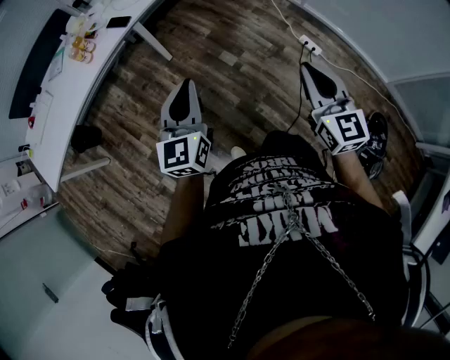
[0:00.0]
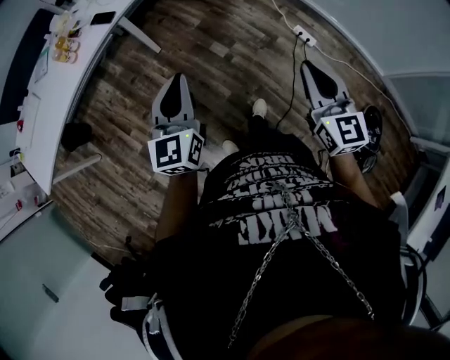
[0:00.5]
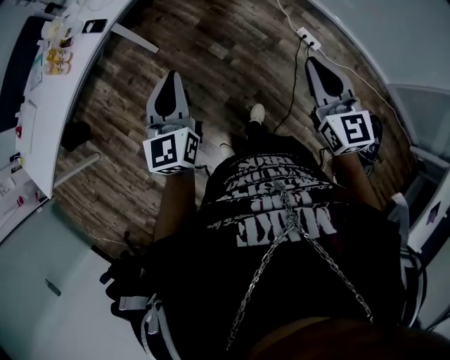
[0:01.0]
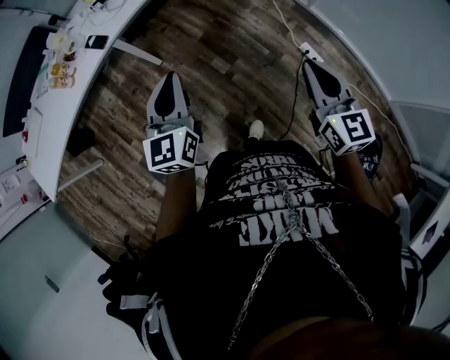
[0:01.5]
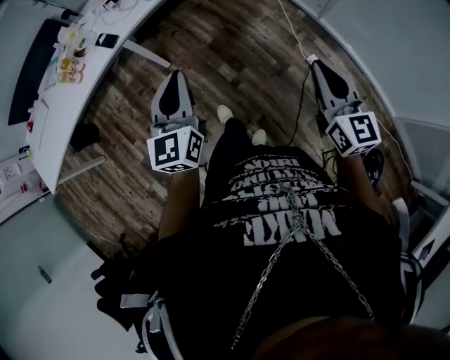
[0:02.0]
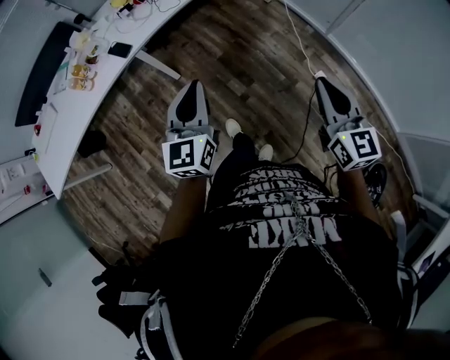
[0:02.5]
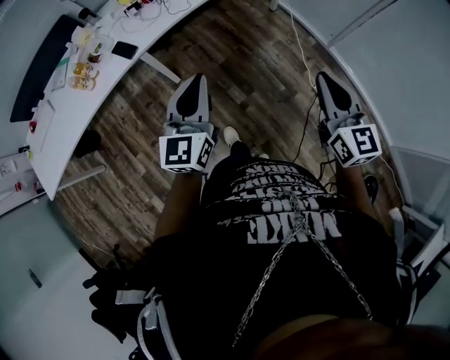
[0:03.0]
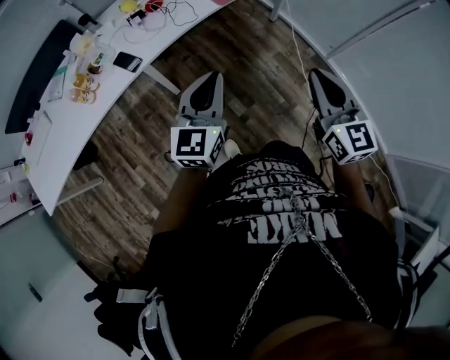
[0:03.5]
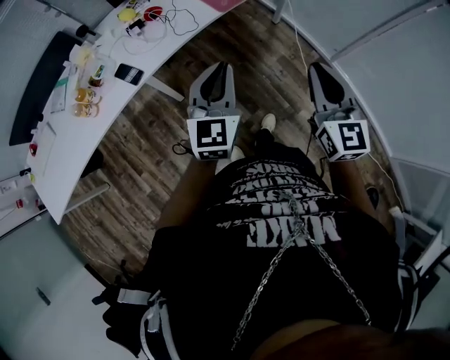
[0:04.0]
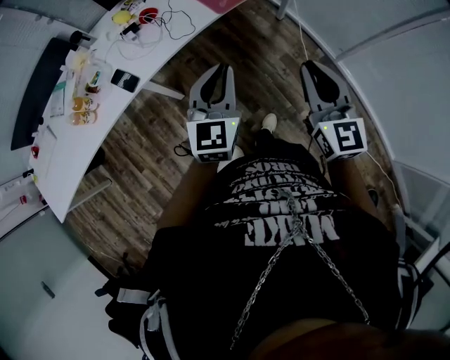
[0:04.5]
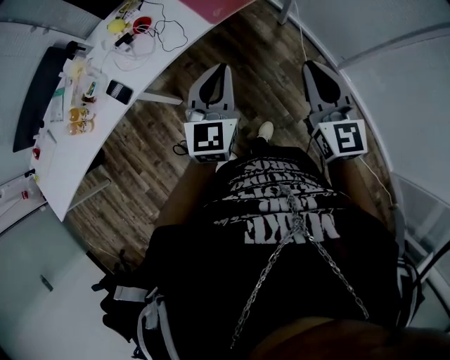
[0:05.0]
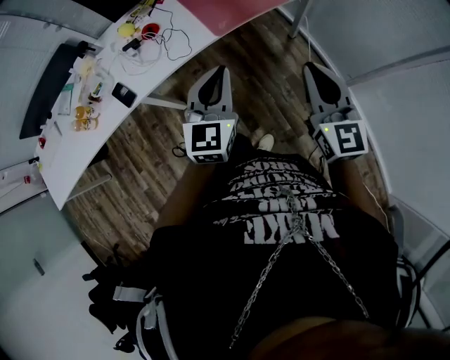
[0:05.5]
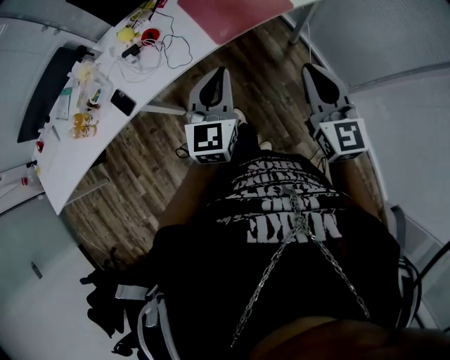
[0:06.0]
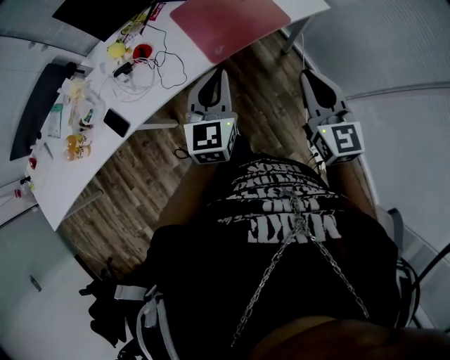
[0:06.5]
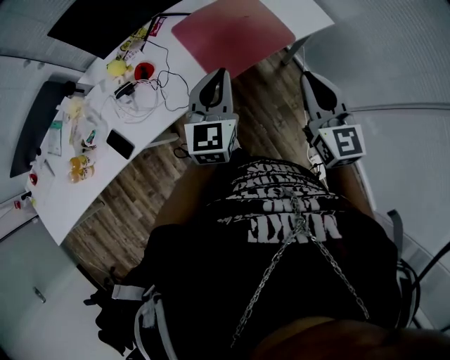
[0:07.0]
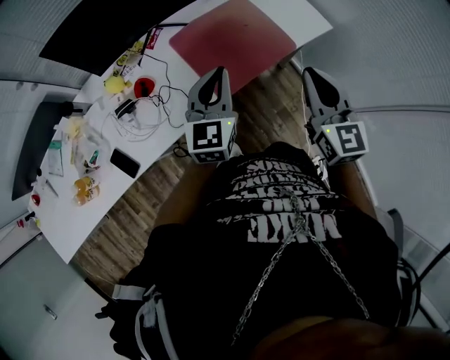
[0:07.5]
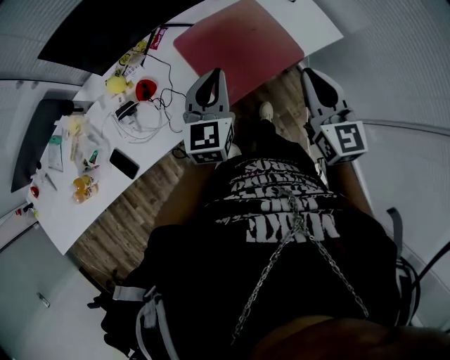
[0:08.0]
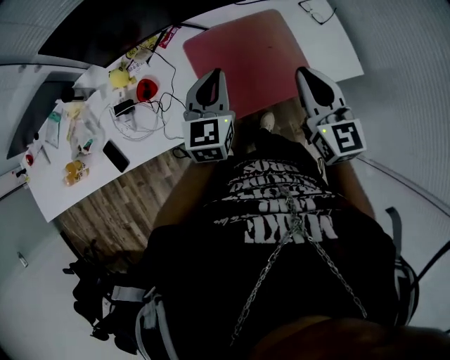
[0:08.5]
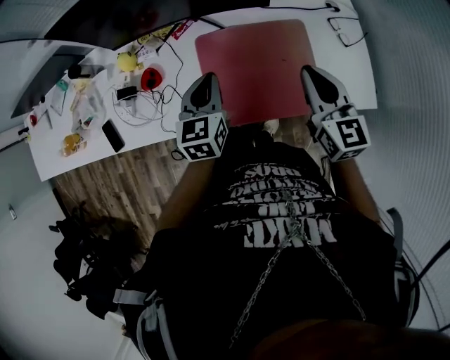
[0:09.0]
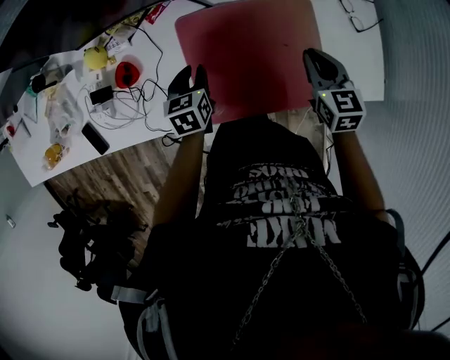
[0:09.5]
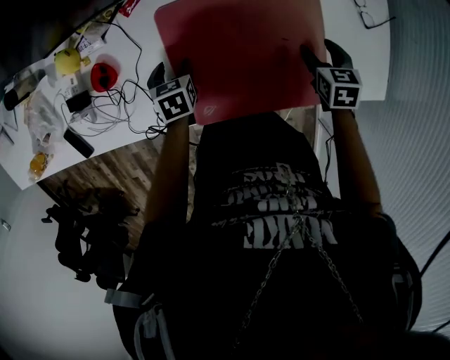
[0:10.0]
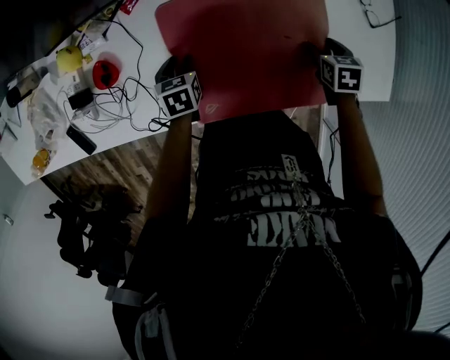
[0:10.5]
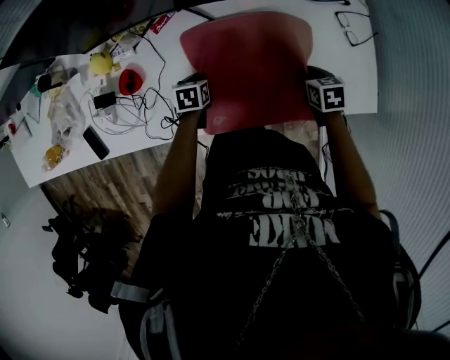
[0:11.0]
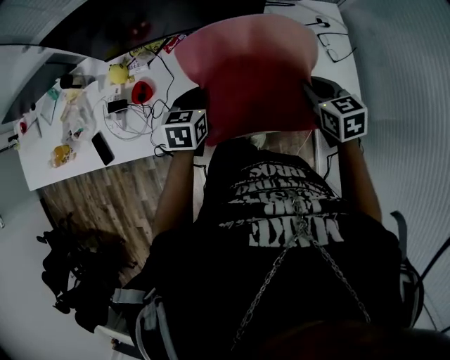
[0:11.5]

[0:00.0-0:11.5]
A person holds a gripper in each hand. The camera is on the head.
0:00.0 to 0:02.0: Both grippers travel together forward and to the right, about 30 cm.
0:02.0 to 0:04.0: The right gripper goes approximately 30 cm forward and to the left. The left gripper travels forward by about 25 cm.
0:04.0 to 0:06.0: The two grippers go approximately 25 cm forward and to the right.
0:06.0 to 0:07.5: Both grippers move forward, approximately 25 cm.
0:07.5 to 0:09.5: The right gripper shifts by roughly 50 cm, and turns by approximately 40 degrees. The left gripper is displaced downward by approximately 30 cm, angles its fingers downward, by approximately 40 degrees, and opens.
0:09.5 to 0:11.5: The left gripper travels upward by some 10 cm, and opens and closes again. The right gripper goes downward and returns, about 20 cm each way, and opens, then closes again.

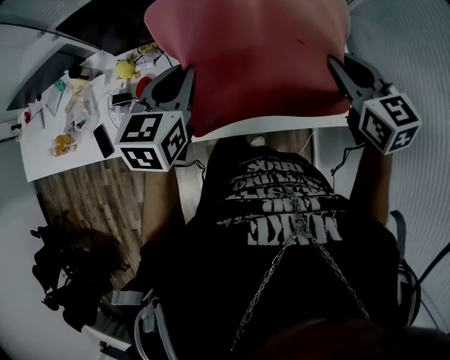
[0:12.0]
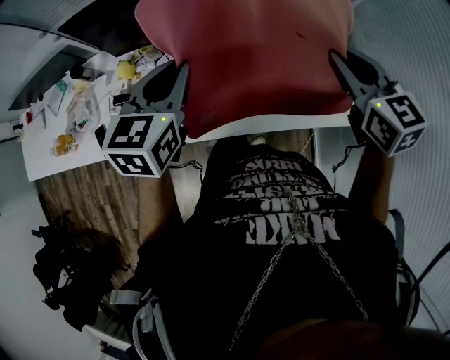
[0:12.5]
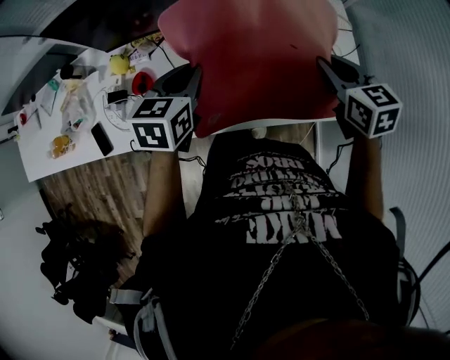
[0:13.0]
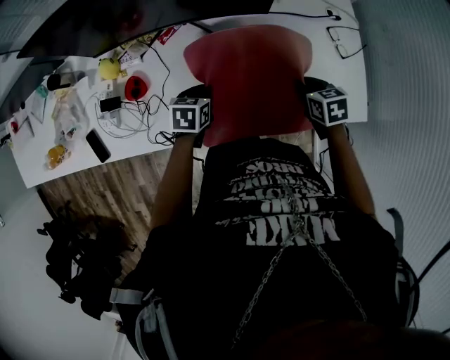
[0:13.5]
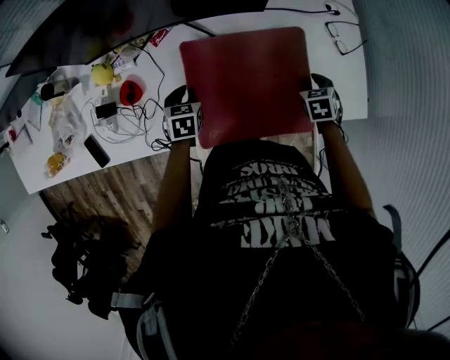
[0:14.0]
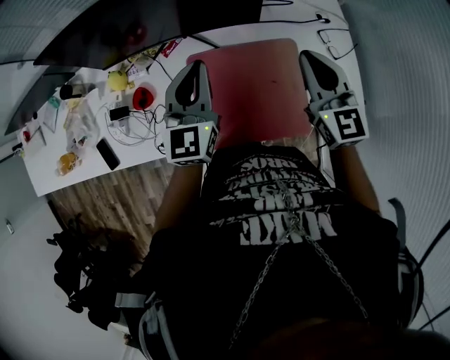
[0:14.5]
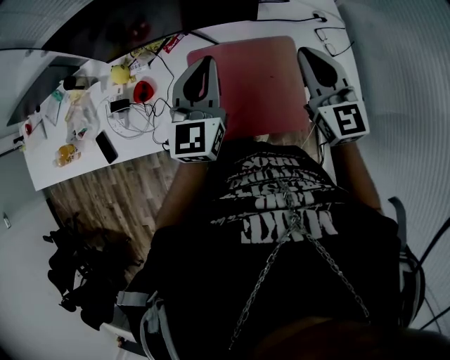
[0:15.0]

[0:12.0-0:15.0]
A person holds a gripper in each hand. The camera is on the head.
0:12.0 to 0:13.5: Both grippers travel together downward, about 30 cm. The left gripper turns by about 30 degrees; the right gripper turns by about 30 degrees.
0:13.5 to 0:15.0: Both grippers move upward, about 25 cm. The left gripper tilts its fingers some 50 degrees upward, while the right gripper tips its fingers upward by about 50 degrees, and opens, then closes again.

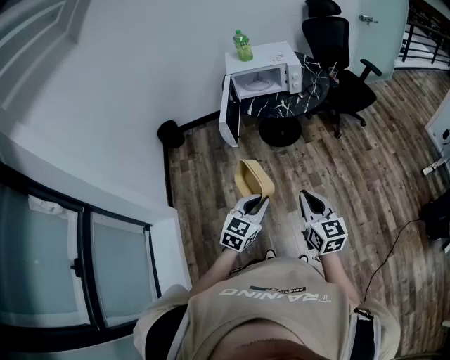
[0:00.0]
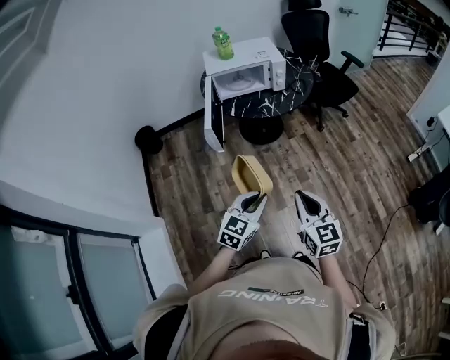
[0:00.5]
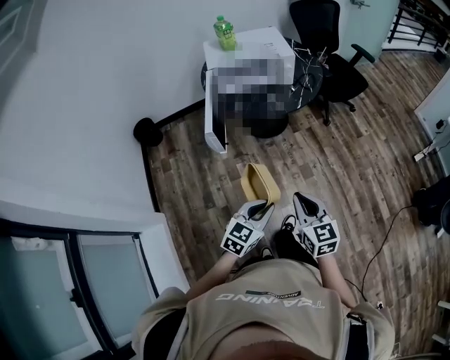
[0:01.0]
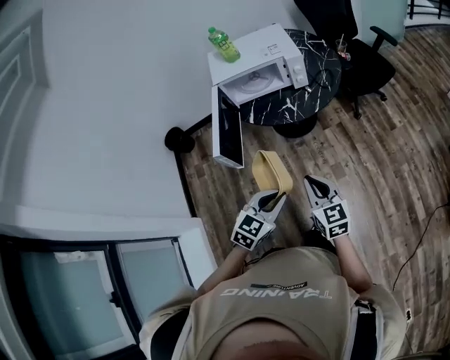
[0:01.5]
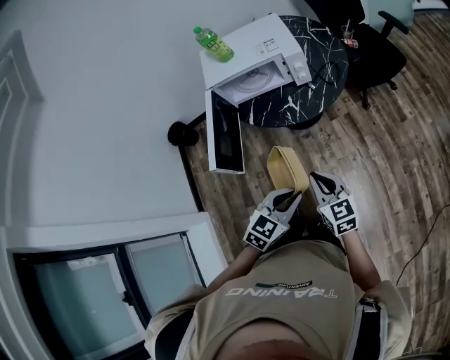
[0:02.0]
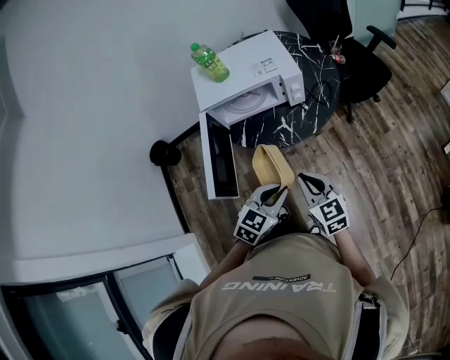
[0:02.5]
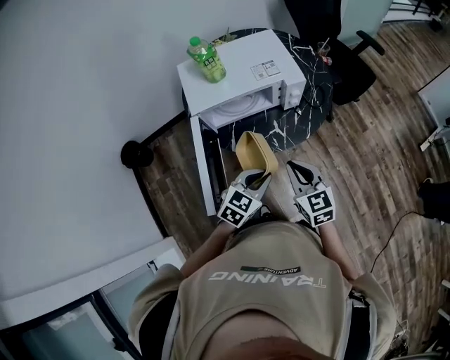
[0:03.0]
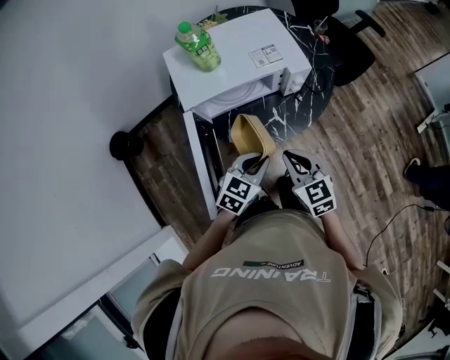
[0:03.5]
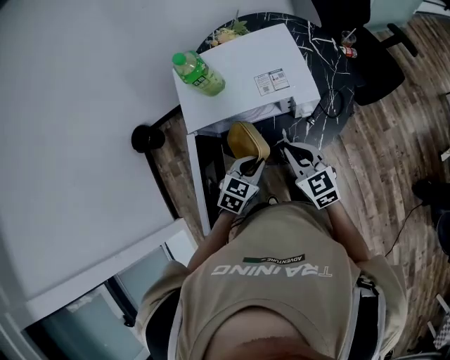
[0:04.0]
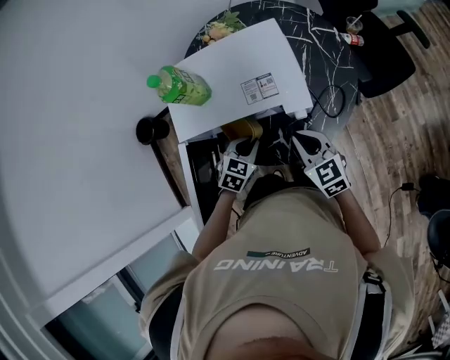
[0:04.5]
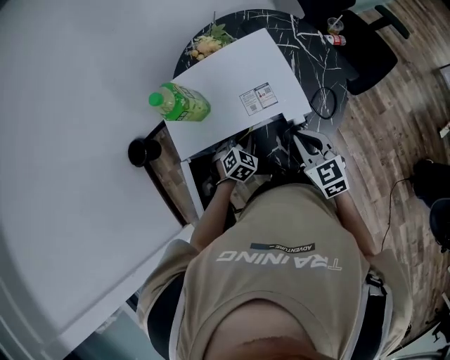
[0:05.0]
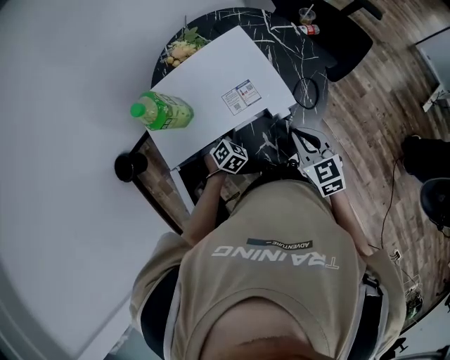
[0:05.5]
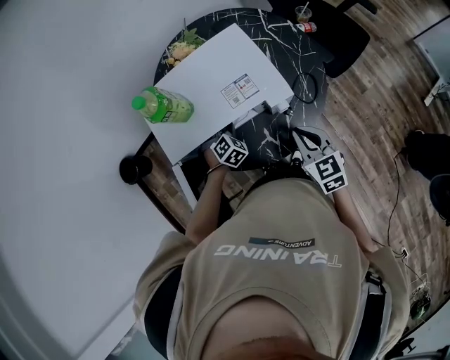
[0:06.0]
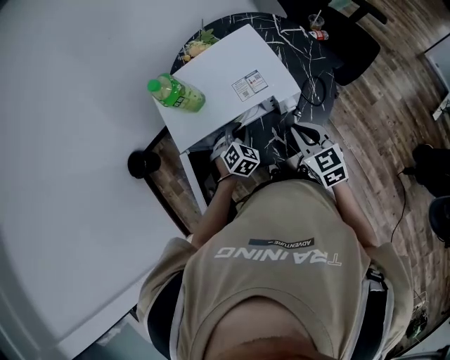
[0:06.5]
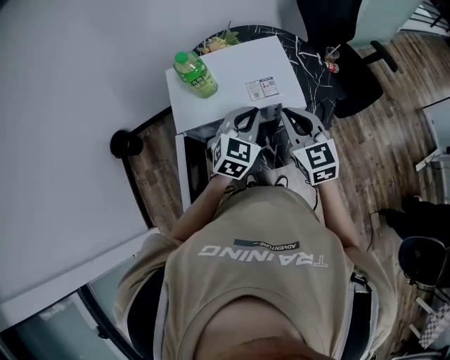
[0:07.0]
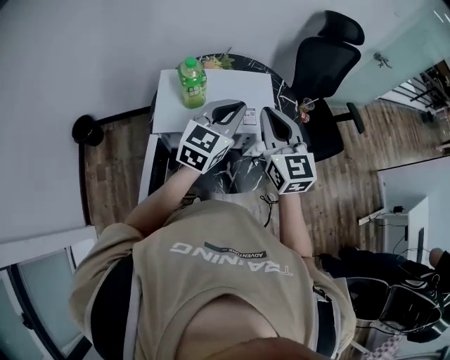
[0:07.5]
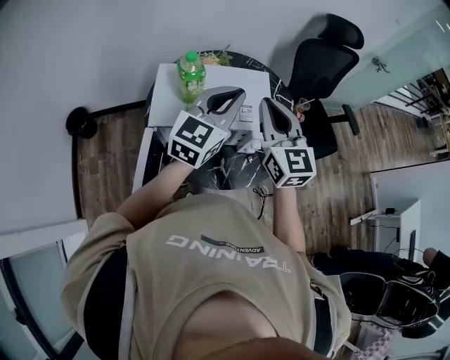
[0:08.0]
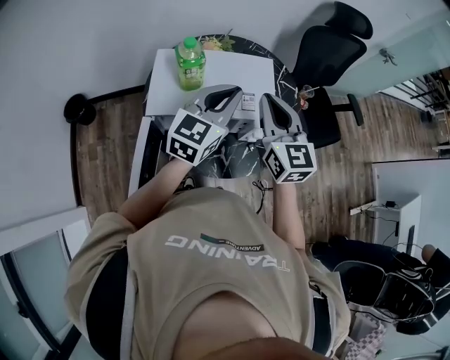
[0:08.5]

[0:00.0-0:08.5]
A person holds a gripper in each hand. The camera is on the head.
0:00.0 to 0:02.0: Both grippers move forward, some 30 cm.
0:02.0 to 0:04.0: The two grippers go approximately 35 cm forward and to the left.
0:04.0 to 0:06.5: The left gripper travels forward and downward by some 15 cm, and swivels approximately 40 degrees. The right gripper moves to the right, roughly 5 cm.
0:06.5 to 0:08.5: The right gripper shifts approximately 20 cm upward, and rotates some 20 degrees; the left gripper moves upward, some 30 cm, and angles its fingers upward, by approximately 50 degrees.

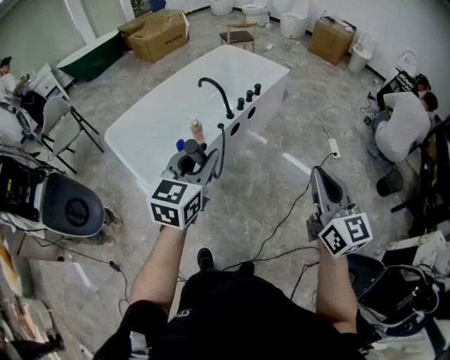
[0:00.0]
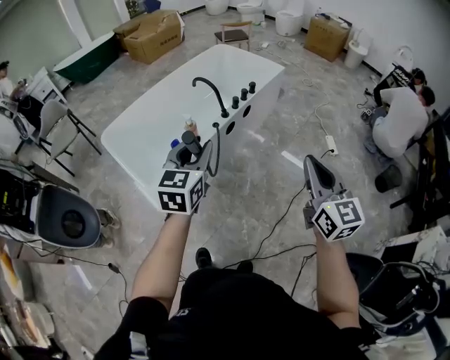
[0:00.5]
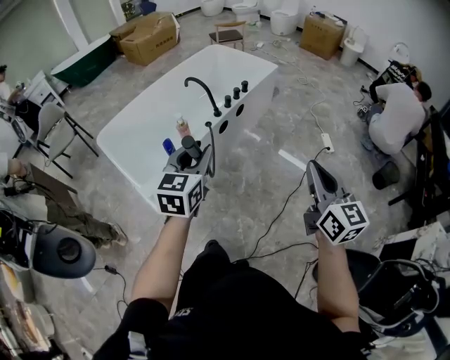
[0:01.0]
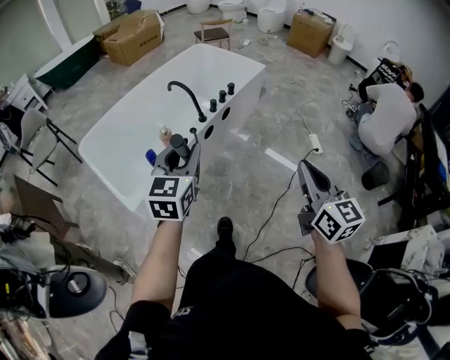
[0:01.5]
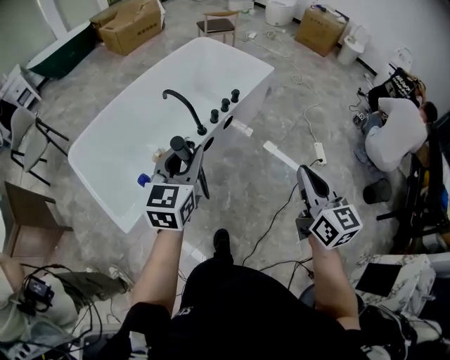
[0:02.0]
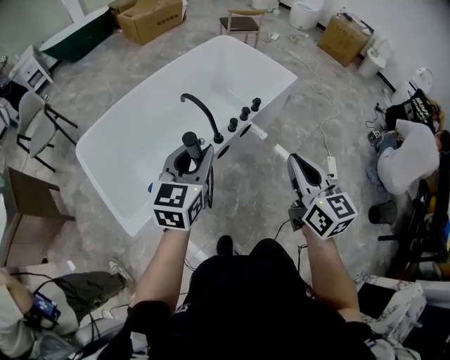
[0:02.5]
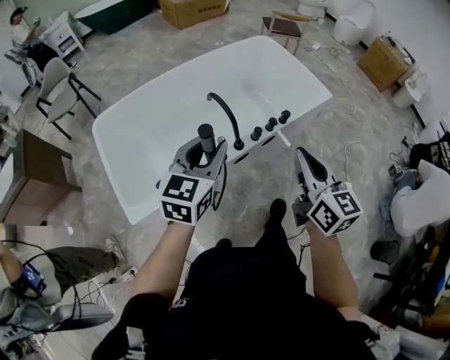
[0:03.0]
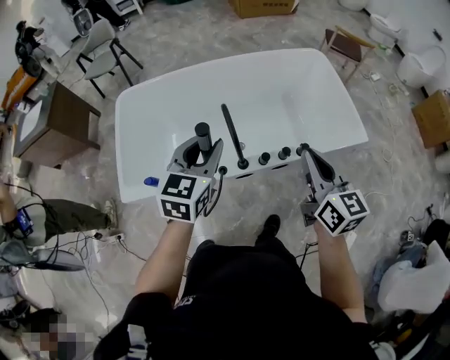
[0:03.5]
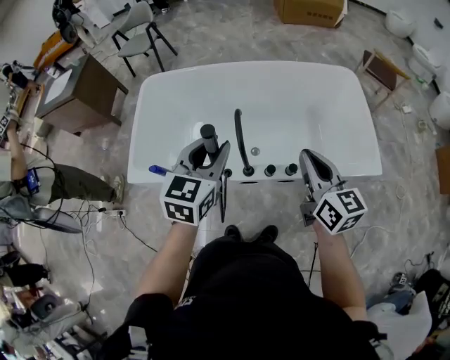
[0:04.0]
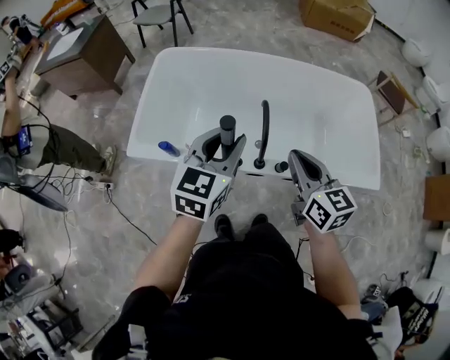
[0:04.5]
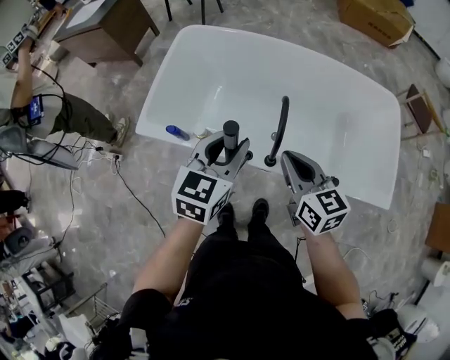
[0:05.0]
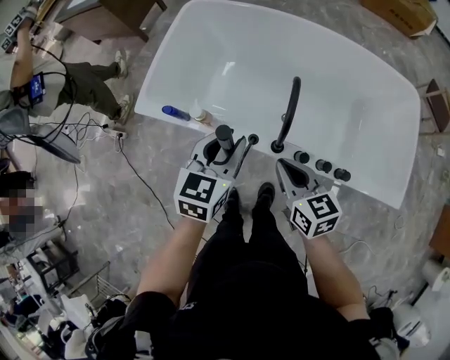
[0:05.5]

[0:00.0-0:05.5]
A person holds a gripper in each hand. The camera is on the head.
0:00.0 to 0:02.0: The two grippers go some 30 cm forward.
0:02.0 to 0:03.5: The right gripper moves roughly 50 cm, and turns by approximately 40 degrees, while the left gripper moves some 35 cm, and rotates roughly 30 degrees.
0:03.5 to 0:05.5: The two grippers go some 15 cm downward. The left gripper changes its angle by approximately 30 degrees; the right gripper turns by approximately 50 degrees.
